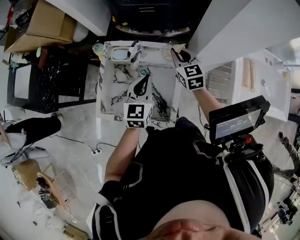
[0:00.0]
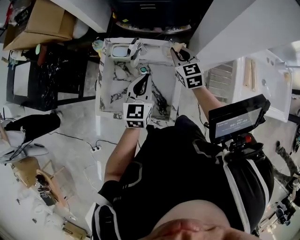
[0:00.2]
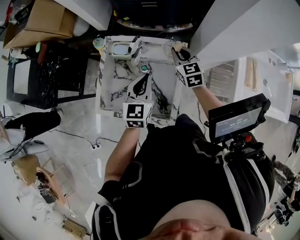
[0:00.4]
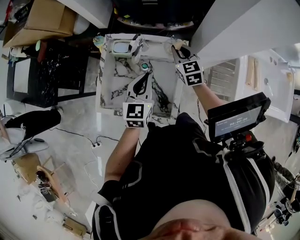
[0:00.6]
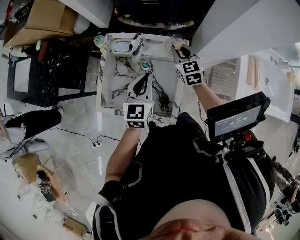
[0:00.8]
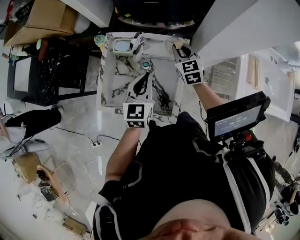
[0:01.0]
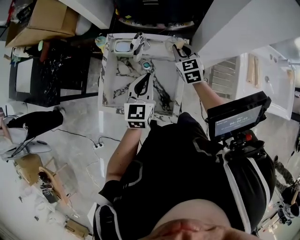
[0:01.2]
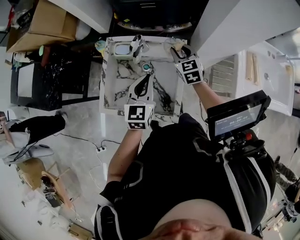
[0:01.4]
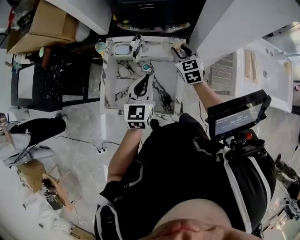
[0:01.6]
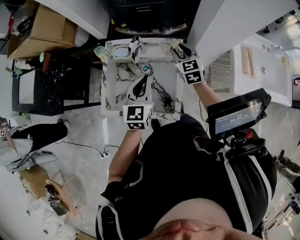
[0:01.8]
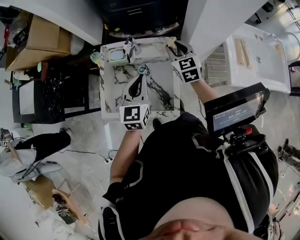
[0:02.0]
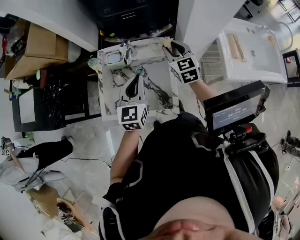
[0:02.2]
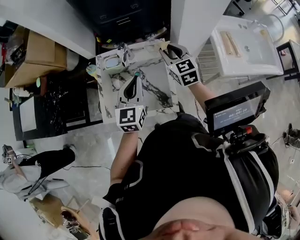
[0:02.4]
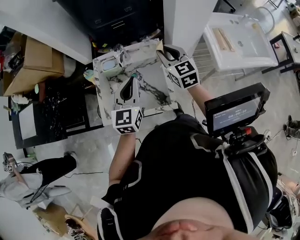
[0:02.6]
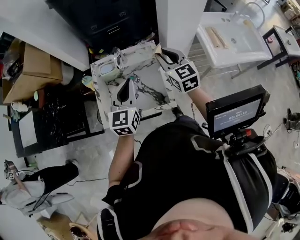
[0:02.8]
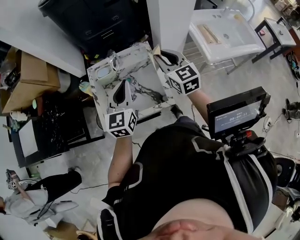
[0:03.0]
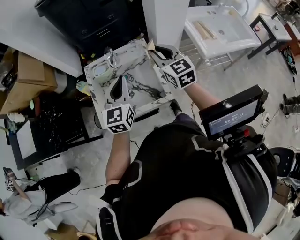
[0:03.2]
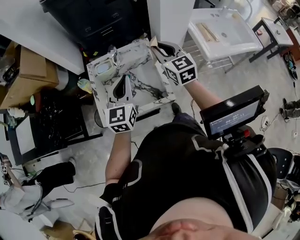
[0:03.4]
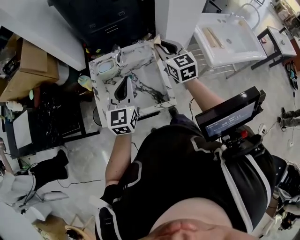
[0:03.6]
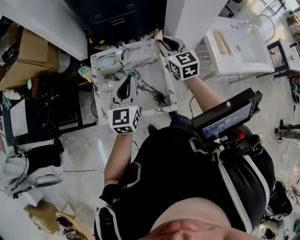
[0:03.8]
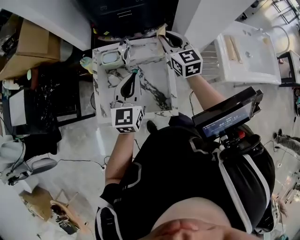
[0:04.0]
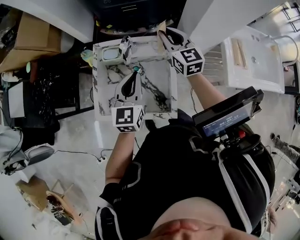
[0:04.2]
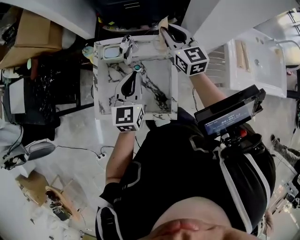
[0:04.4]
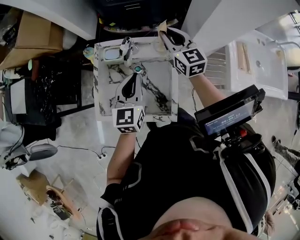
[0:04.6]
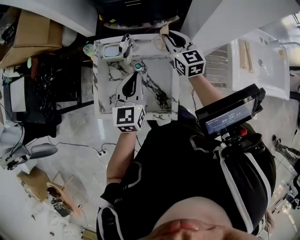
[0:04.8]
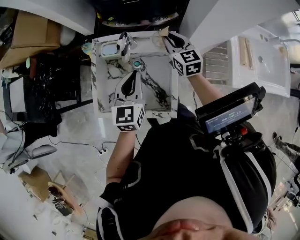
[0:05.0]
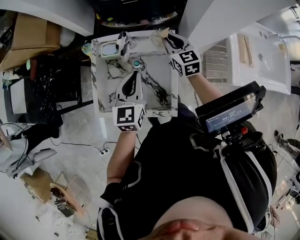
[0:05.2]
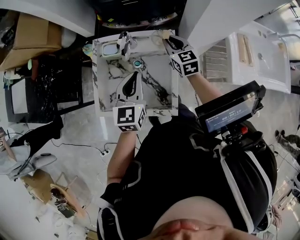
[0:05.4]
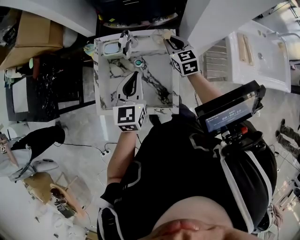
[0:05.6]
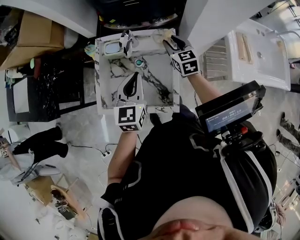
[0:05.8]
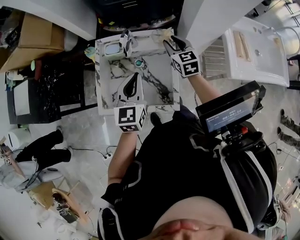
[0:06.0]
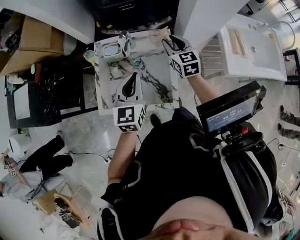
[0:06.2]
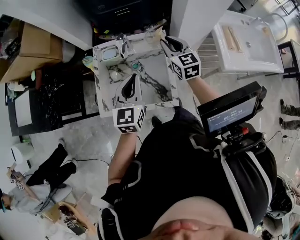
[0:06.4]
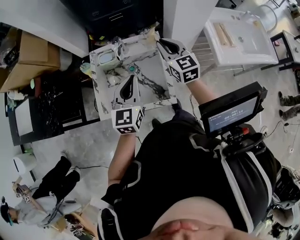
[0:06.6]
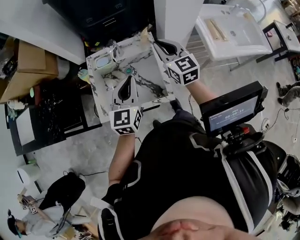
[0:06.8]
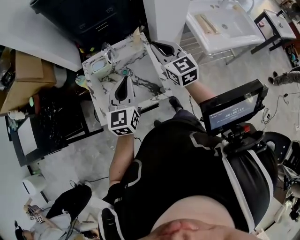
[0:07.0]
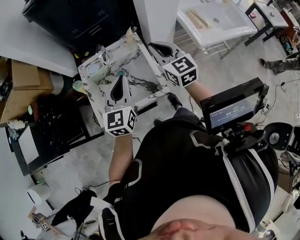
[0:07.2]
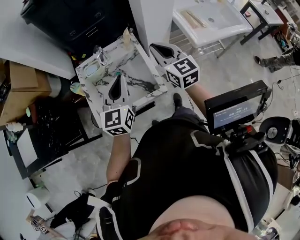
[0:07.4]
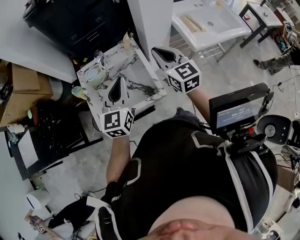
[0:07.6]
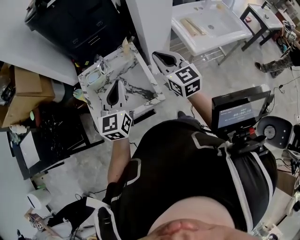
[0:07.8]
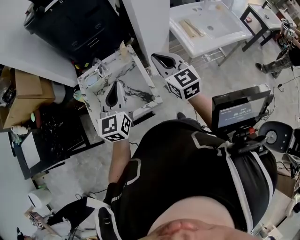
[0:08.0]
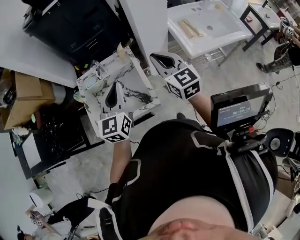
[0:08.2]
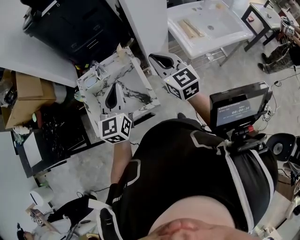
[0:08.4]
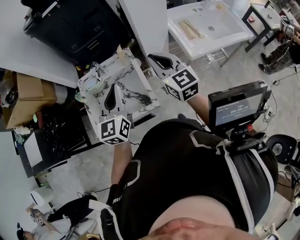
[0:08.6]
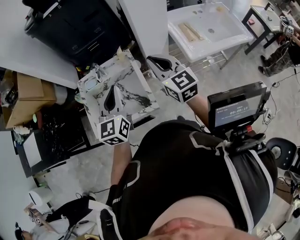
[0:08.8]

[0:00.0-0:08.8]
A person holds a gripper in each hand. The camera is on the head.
0:00.0 to 0:01.4: There are only small adjustments of the grippers.
0:01.4 to 0:03.0: The left gripper shifts approximately 10 cm upward and backward. The right gripper heads backward and upward, covering approximately 25 cm, and changes its angle by roughly 20 degrees.
0:03.0 to 0:04.4: The right gripper goes roughly 20 cm forward, while the left gripper moves forward and downward, roughly 10 cm.
0:04.4 to 0:05.8: The right gripper travels downward by about 10 cm.
0:05.8 to 0:07.4: The right gripper shifts approximately 25 cm backward and upward, turns by approximately 20 degrees, and closes up, while the left gripper goes roughly 10 cm upward and backward, and rotates approximately 20 degrees.
0:07.4 to 0:08.8: The right gripper shifts some 5 cm to the right, while the left gripper shifts by roughly 5 cm.

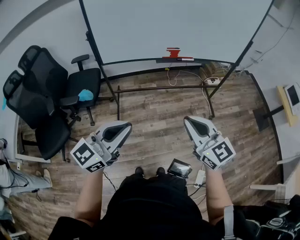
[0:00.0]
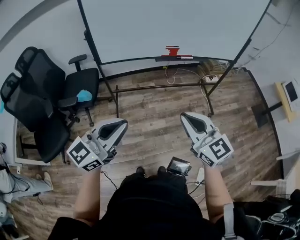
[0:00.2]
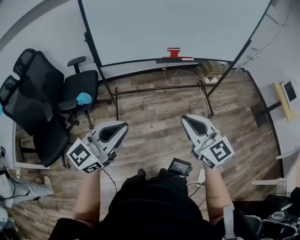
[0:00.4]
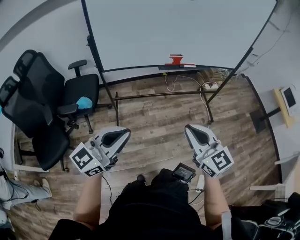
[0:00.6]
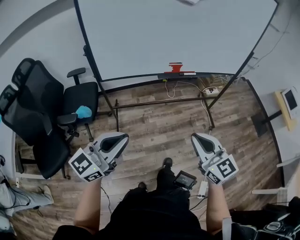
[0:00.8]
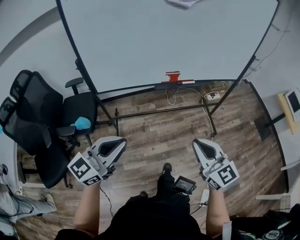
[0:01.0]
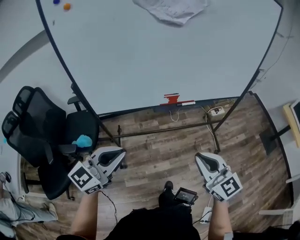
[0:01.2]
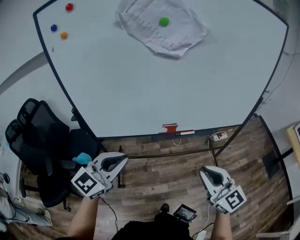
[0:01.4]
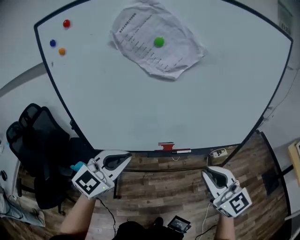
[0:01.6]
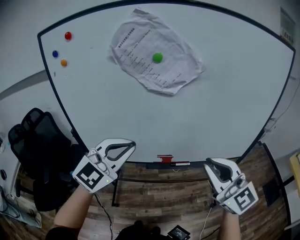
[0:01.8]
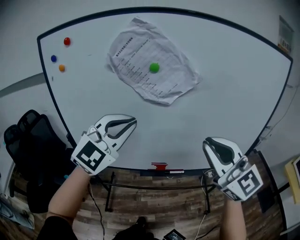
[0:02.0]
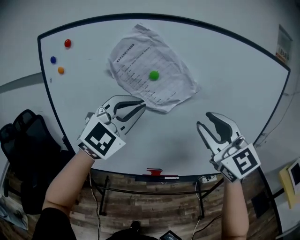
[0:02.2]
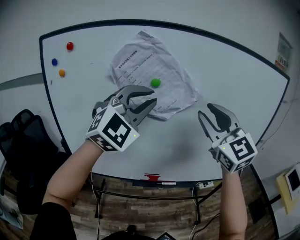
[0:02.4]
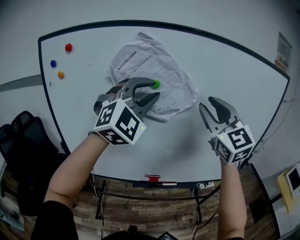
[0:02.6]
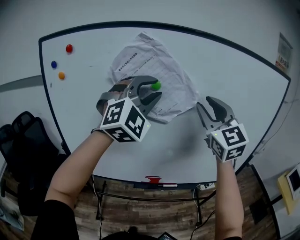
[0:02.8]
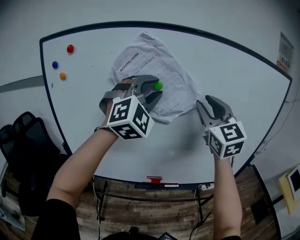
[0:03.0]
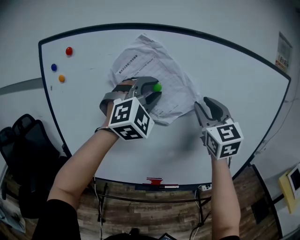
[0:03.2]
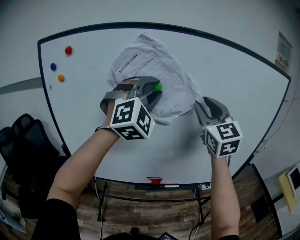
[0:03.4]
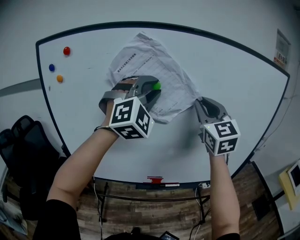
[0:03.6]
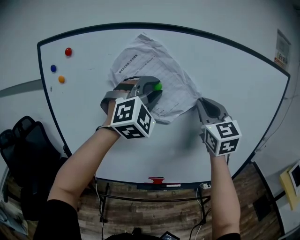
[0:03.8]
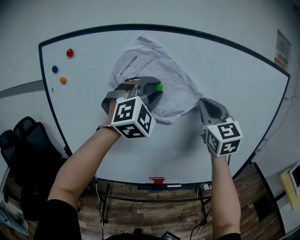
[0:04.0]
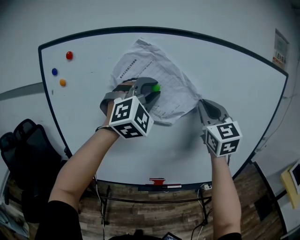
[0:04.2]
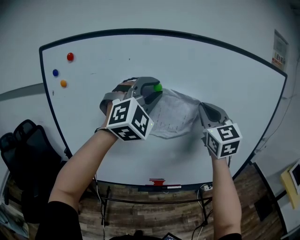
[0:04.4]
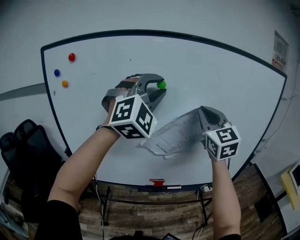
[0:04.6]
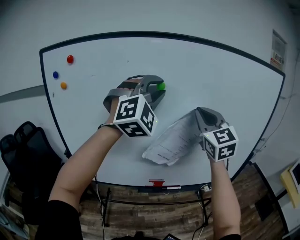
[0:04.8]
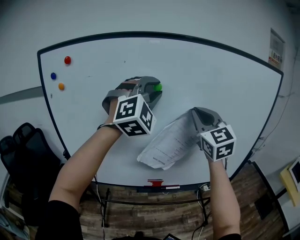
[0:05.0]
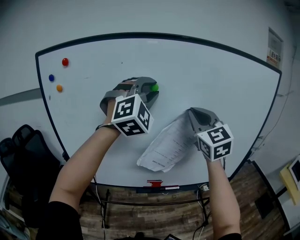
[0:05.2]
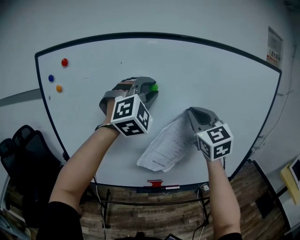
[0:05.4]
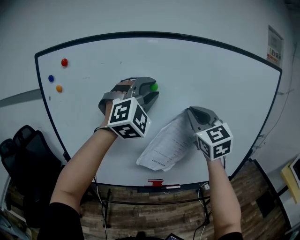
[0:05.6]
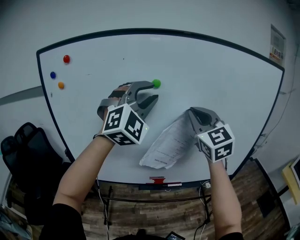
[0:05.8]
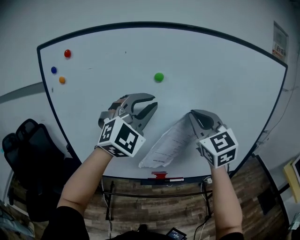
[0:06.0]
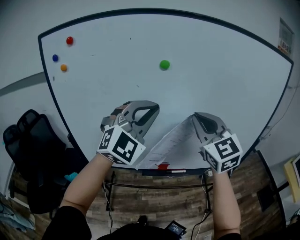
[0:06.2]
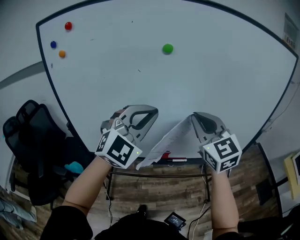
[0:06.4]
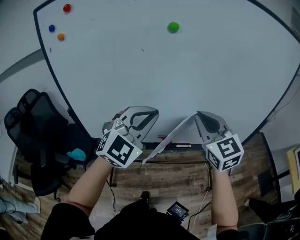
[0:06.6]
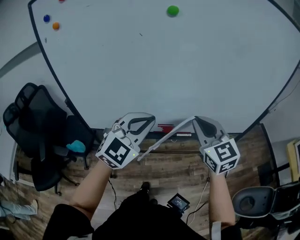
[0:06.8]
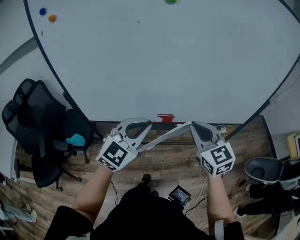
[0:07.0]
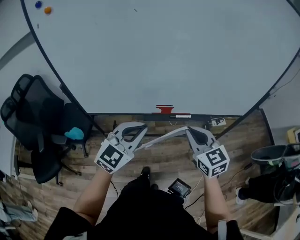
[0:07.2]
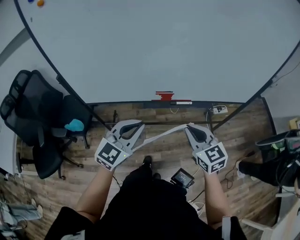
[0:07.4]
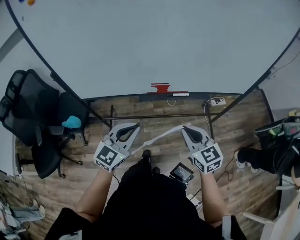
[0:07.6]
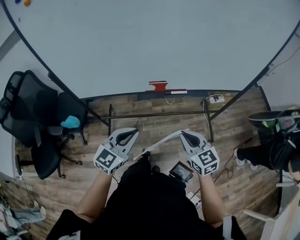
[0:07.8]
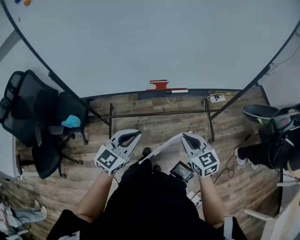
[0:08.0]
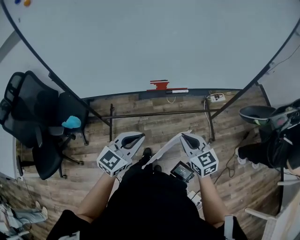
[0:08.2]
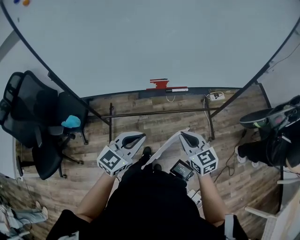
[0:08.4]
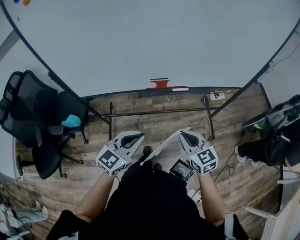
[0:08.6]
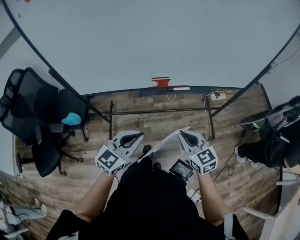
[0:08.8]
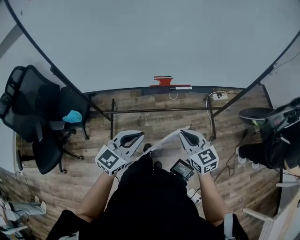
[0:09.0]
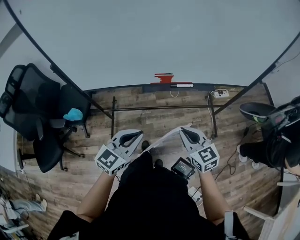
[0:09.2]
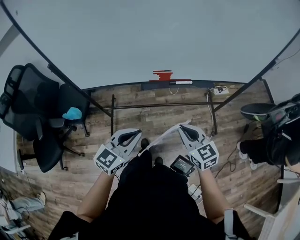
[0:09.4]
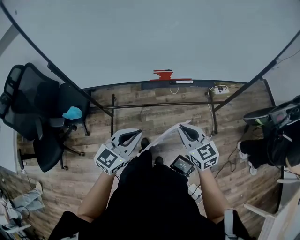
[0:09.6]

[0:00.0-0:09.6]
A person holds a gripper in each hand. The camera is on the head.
0:00.0 to 0:01.6: Both grippers move forward, about 35 cm. The left gripper swivels about 30 degrees.
0:01.6 to 0:03.2: The left gripper travels upward and forward by about 35 cm, rolls clockwise, seen from behind, by approximately 50 degrees, and opens its fingers. Meanwhile the right gripper shifts approximately 40 cm forward and upward, rotates about 20 degrees, and opens its fingers.
0:03.2 to 0:04.8: The right gripper closes.
0:04.8 to 0:06.4: The grippers both shift downward and backward by about 15 cm. The left gripper changes its angle by approximately 30 degrees, and closes up.
0:06.4 to 0:08.0: The grippers both shift downward and backward by roughly 40 cm. The right gripper rotates approximately 30 degrees. Meanwhile the left gripper twists about 50 degrees counterclockwise, seen from behind.
0:08.0 to 0:09.6: There are only small adjustments of the grippers.

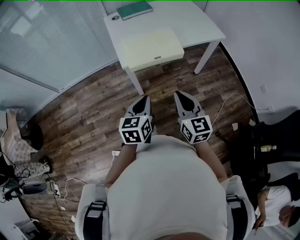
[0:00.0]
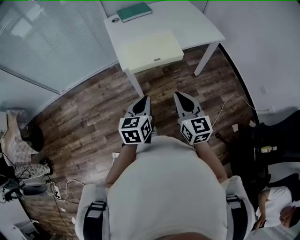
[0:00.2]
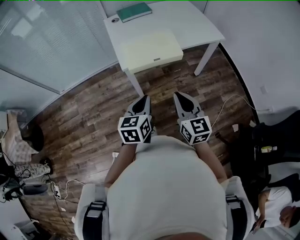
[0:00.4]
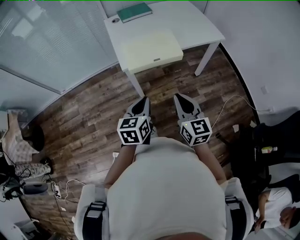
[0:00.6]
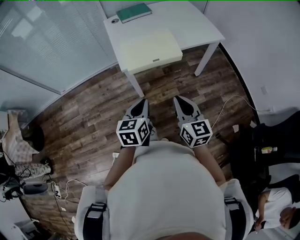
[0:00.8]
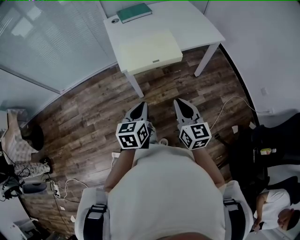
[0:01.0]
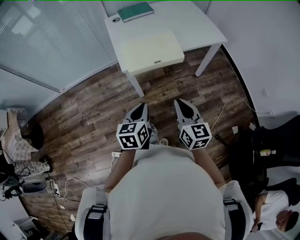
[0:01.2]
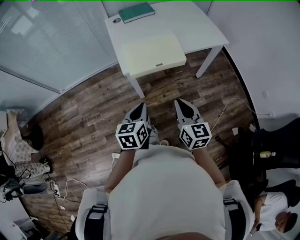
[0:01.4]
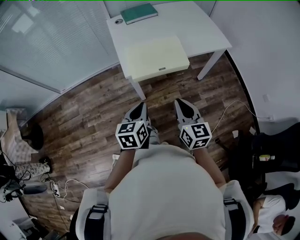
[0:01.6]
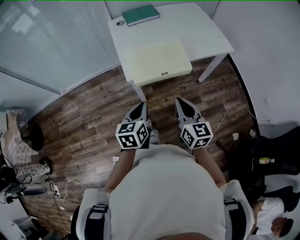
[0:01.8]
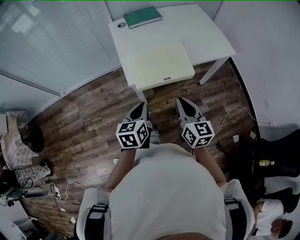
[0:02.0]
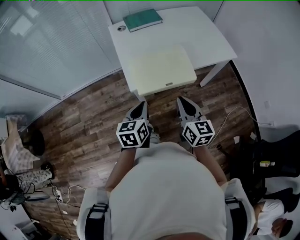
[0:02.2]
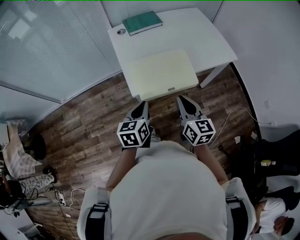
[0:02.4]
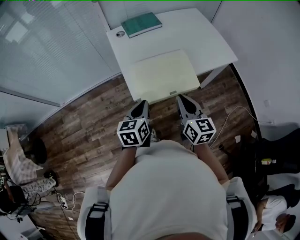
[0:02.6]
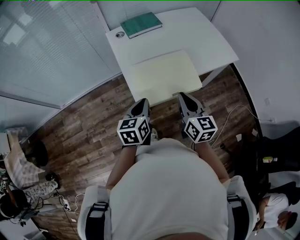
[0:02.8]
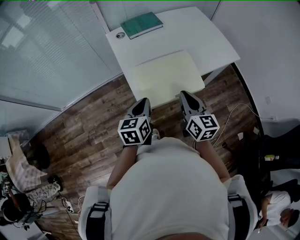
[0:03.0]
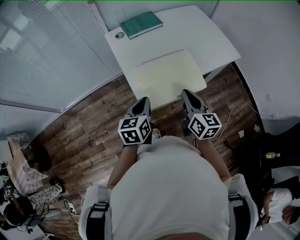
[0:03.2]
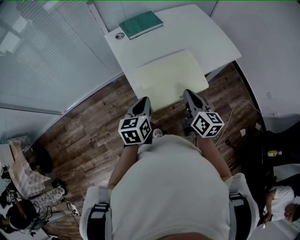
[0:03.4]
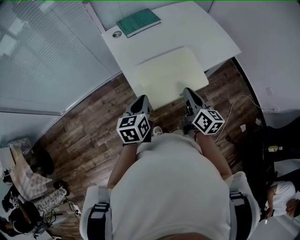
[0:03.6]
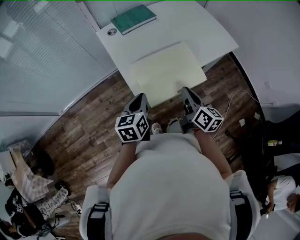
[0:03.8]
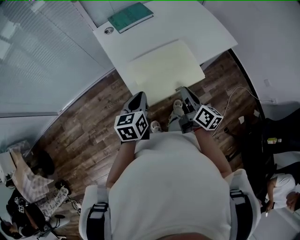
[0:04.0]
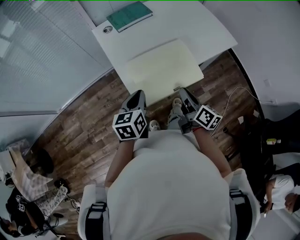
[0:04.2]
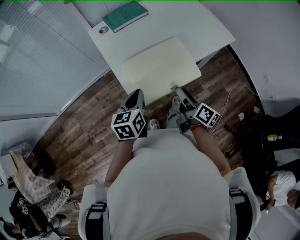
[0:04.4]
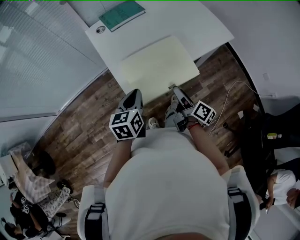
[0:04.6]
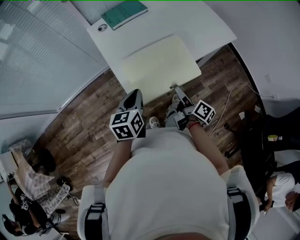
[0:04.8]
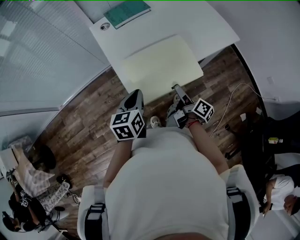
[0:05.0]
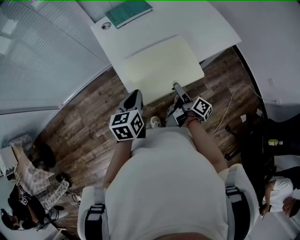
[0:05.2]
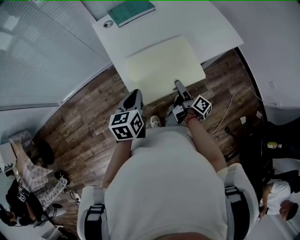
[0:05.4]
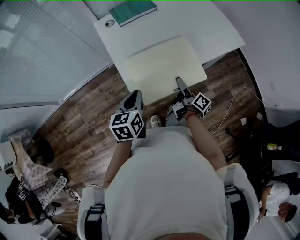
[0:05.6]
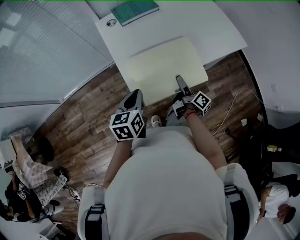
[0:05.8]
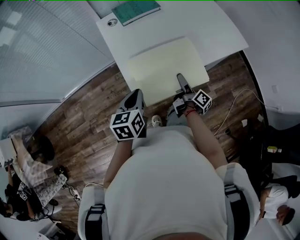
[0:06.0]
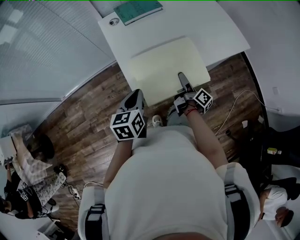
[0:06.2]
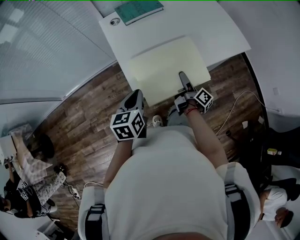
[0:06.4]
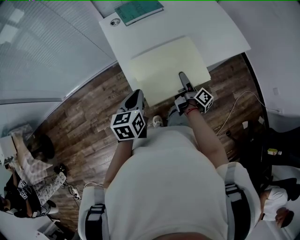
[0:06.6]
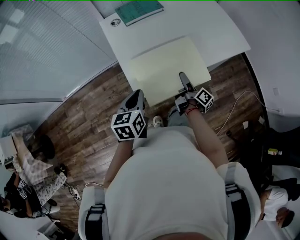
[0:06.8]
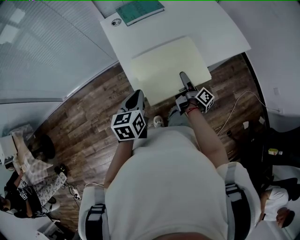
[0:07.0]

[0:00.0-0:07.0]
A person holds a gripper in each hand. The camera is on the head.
0:00.0 to 0:01.4: The grippers stay close to where they were, moving slightly.
0:01.4 to 0:02.8: The grippers both shift forward by about 20 cm.
0:02.8 to 0:04.2: The left gripper ends up approximately 5 cm from where it was. Meanwhile the right gripper goes approximately 10 cm downward, and rotates roughly 40 degrees.
0:04.2 to 0:05.6: The right gripper is displaced downward and forward by about 10 cm, swivels about 30 degrees, and opens.
0:05.6 to 0:07.0: The grippers make only small movements.
